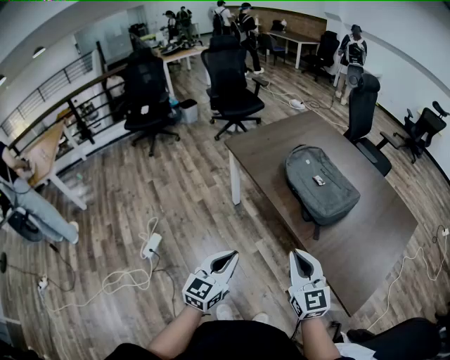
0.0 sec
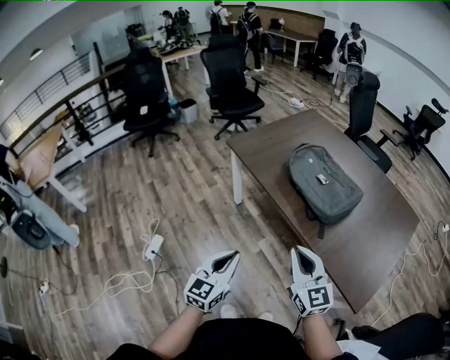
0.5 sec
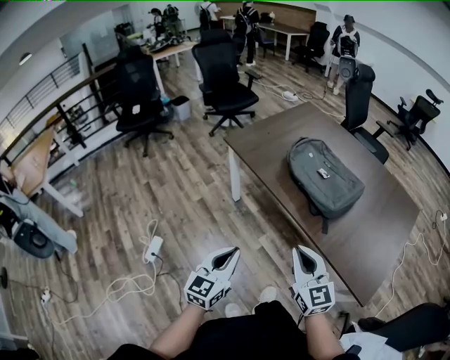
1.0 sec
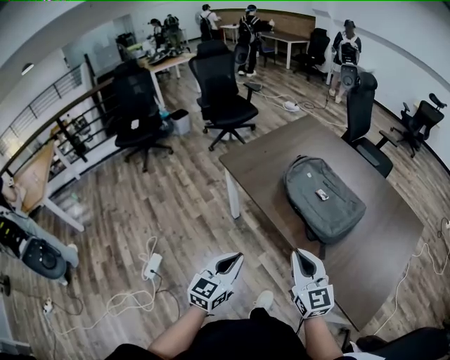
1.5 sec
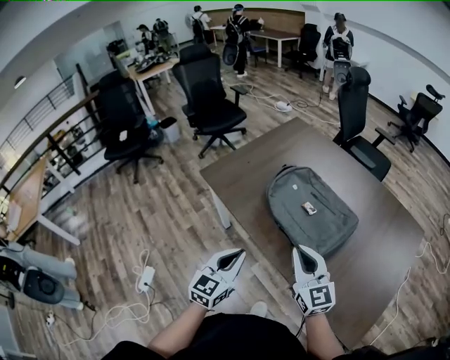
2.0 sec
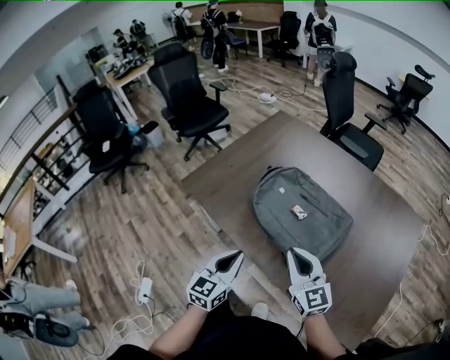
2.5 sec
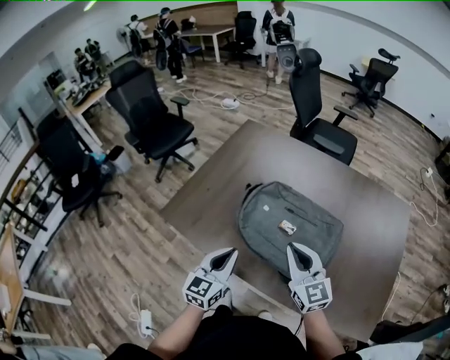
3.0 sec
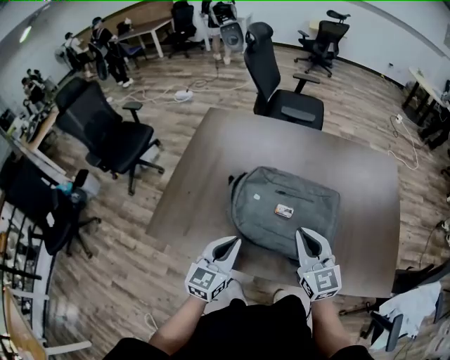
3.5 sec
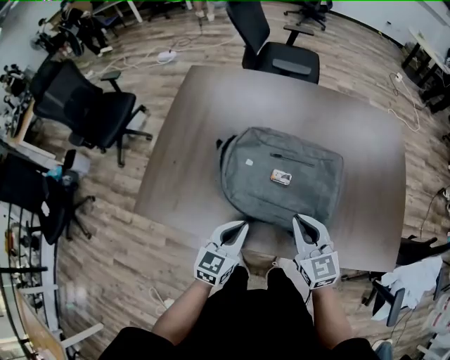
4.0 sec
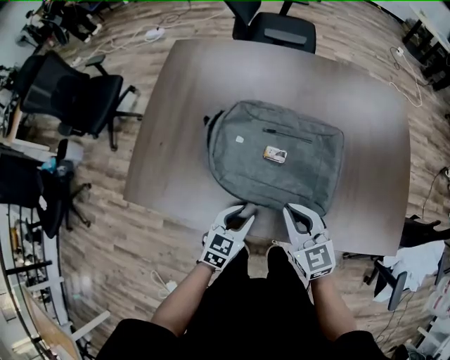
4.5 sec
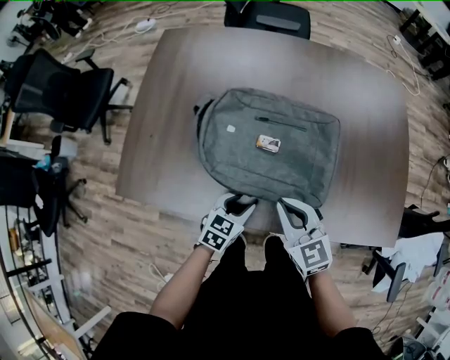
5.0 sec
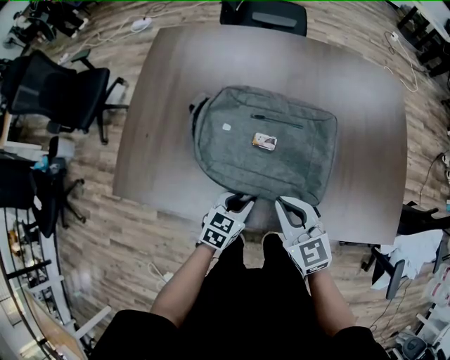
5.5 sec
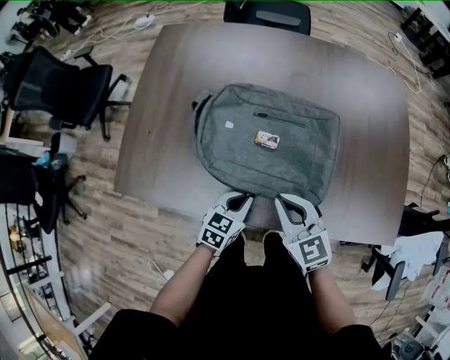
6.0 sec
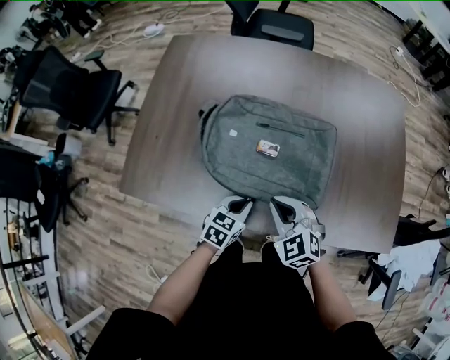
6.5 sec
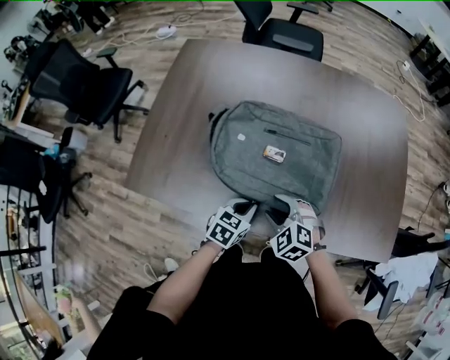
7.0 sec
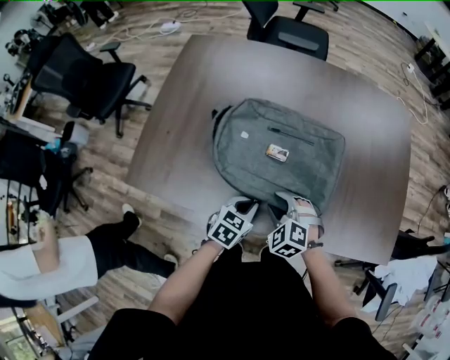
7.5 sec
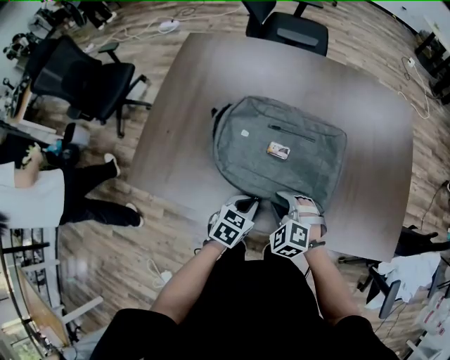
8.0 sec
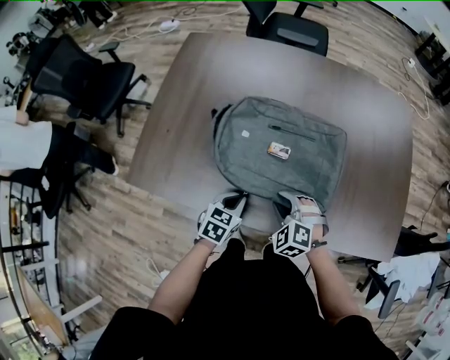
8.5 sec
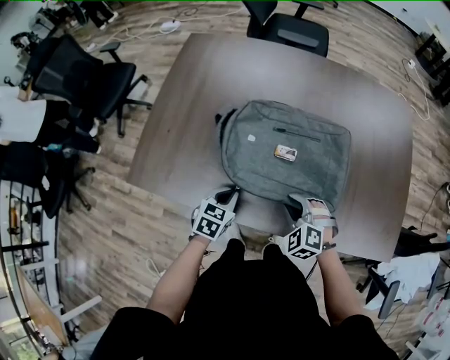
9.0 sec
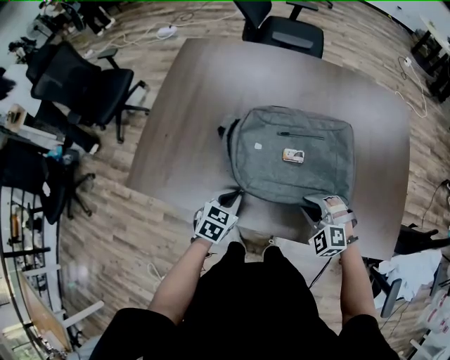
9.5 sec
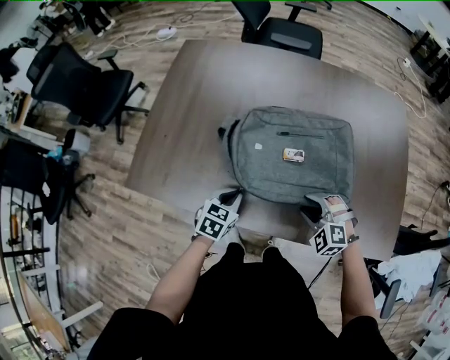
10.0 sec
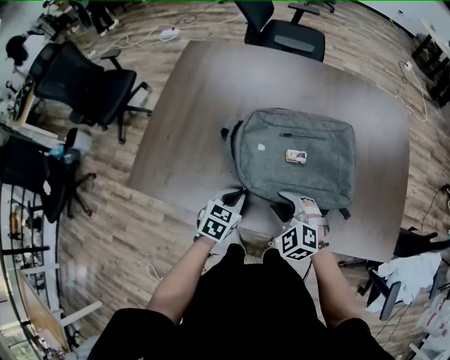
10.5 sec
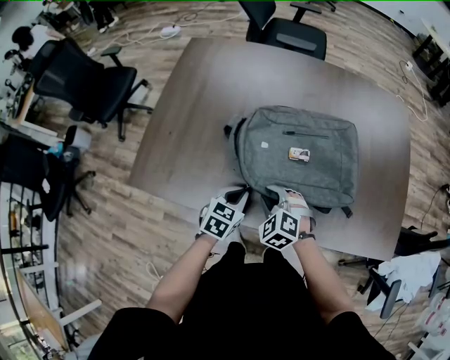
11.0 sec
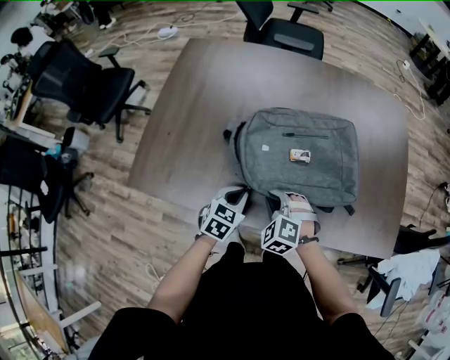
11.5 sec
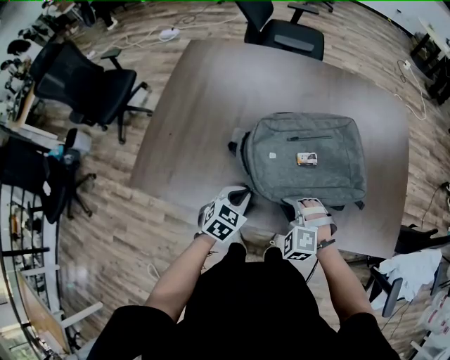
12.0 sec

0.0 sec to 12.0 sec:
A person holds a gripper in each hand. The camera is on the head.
0.0 sec to 2.0 sec: The two grippers go about 20 cm forward.
2.0 sec to 4.0 sec: The left gripper shifts by some 20 cm, and turns by approximately 40 degrees; the right gripper moves approximately 15 cm, and rotates approximately 40 degrees.
4.0 sec to 6.0 sec: The left gripper moves downward and to the right, approximately 10 cm, and opens, then closes once more.
6.0 sec to 8.0 sec: The right gripper moves downward, roughly 10 cm, twists roughly 40 degrees counterclockwise, seen from behind, and opens its fingers.
8.0 sec to 10.0 sec: The right gripper shifts approximately 10 cm to the right.
10.0 sec to 12.0 sec: The right gripper is displaced to the left by some 10 cm, and closes up.

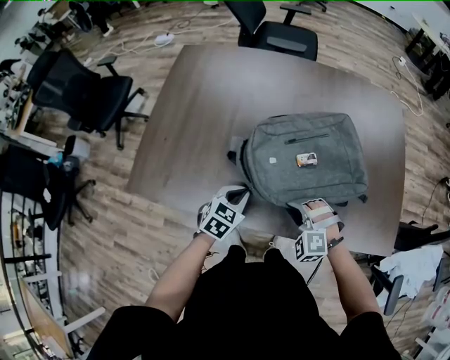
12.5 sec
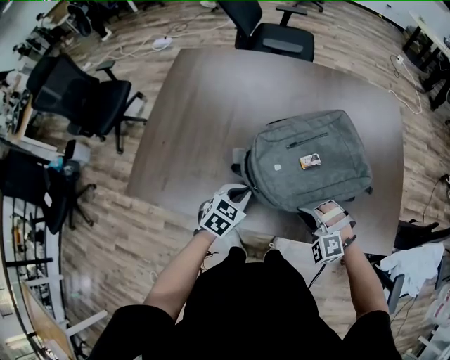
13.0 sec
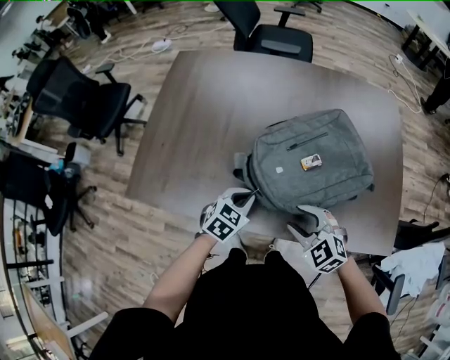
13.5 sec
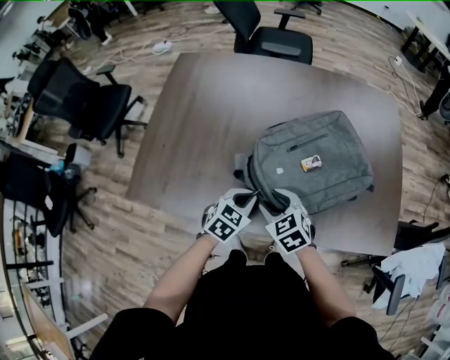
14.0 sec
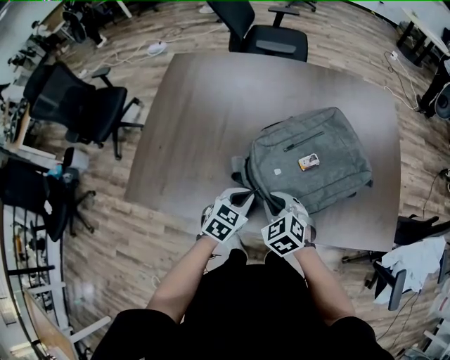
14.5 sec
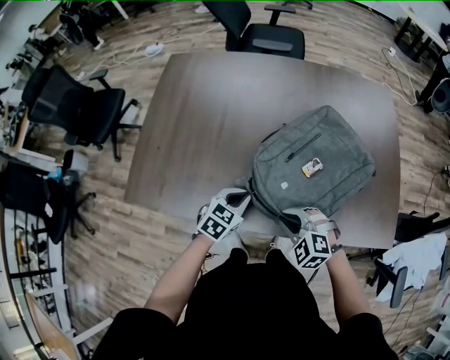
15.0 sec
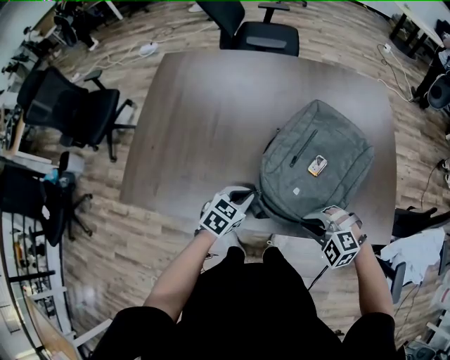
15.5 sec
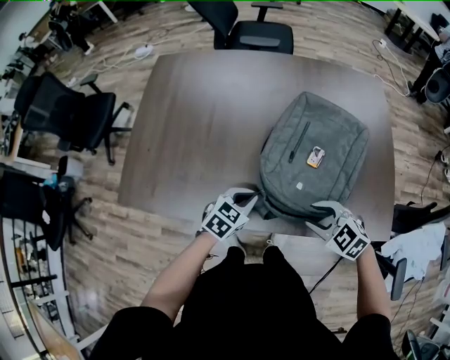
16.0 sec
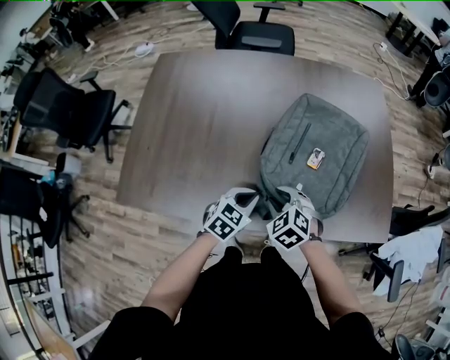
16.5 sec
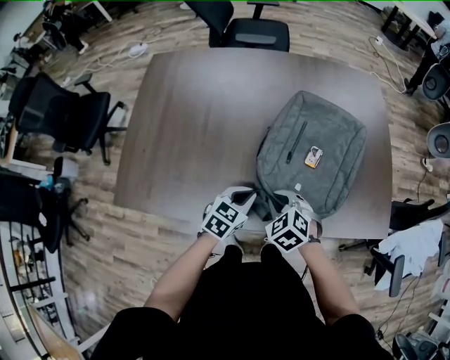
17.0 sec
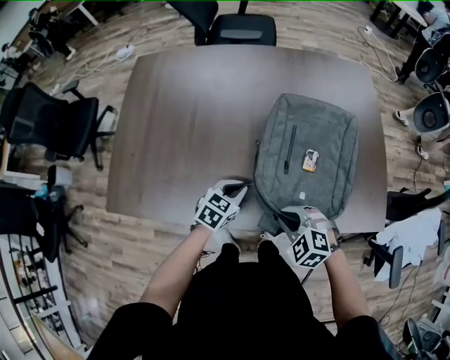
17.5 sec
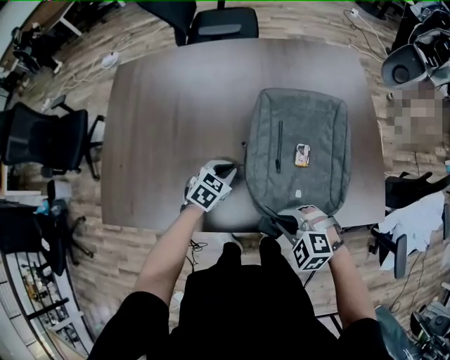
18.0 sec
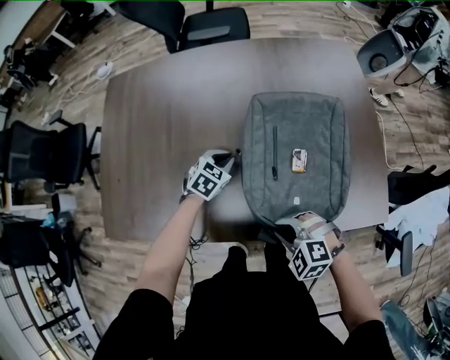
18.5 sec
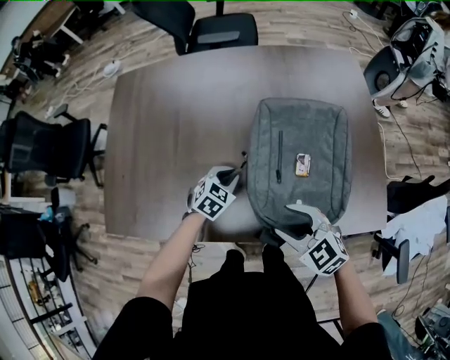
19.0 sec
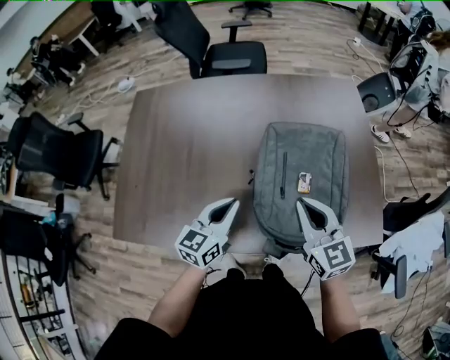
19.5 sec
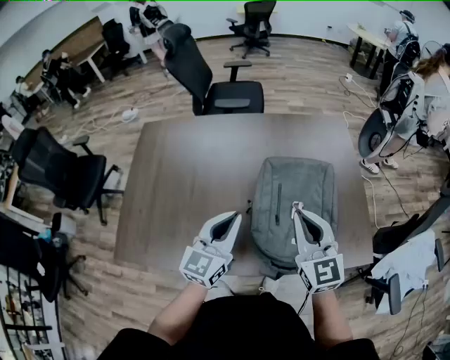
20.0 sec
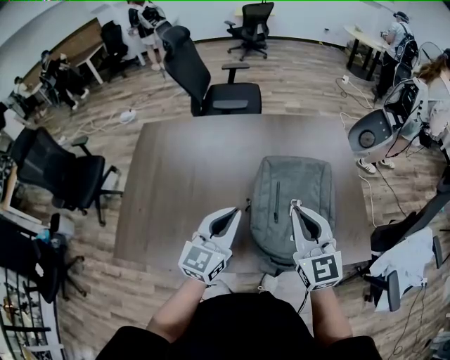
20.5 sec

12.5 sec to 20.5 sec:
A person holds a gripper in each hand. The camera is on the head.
12.5 sec to 14.5 sec: The right gripper shifts by approximately 5 cm, rotates around the line of its fingers by roughly 40 degrees, clockwise from behind, and opens, then closes again.
14.5 sec to 16.5 sec: The right gripper reaches approximately 15 cm to the right, then returns, and opens up. The left gripper is displaced to the right by approximately 5 cm.
16.5 sec to 18.5 sec: The right gripper moves backward and to the right, approximately 10 cm, changes its angle by approximately 20 degrees, and closes, while the left gripper shifts approximately 15 cm forward.
18.5 sec to 20.5 sec: The right gripper shifts about 30 cm upward and forward, tilts its fingers roughly 50 degrees upward, and opens, then closes again. The left gripper shifts some 30 cm upward and backward, and angles its fingers upward, by approximately 50 degrees.

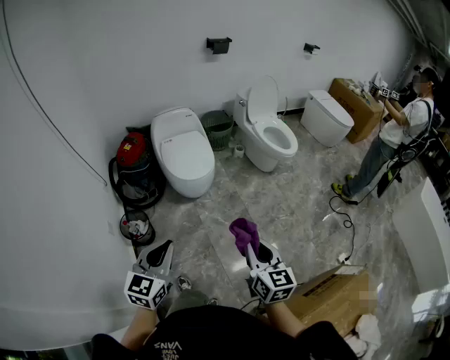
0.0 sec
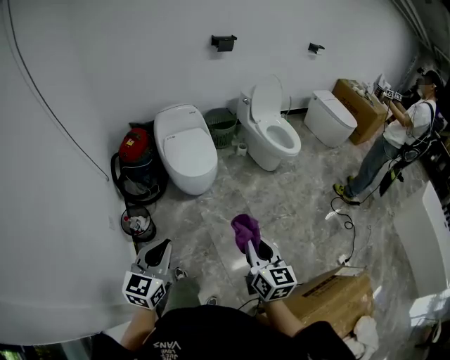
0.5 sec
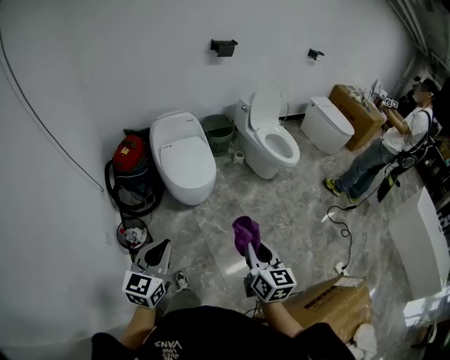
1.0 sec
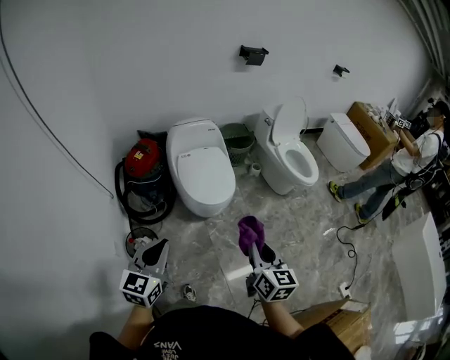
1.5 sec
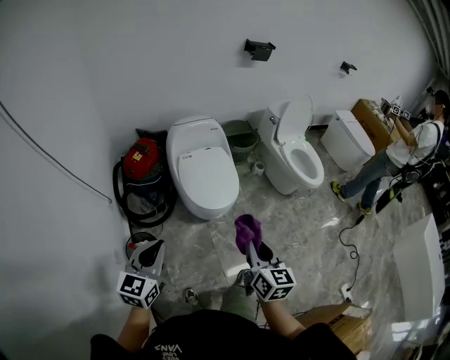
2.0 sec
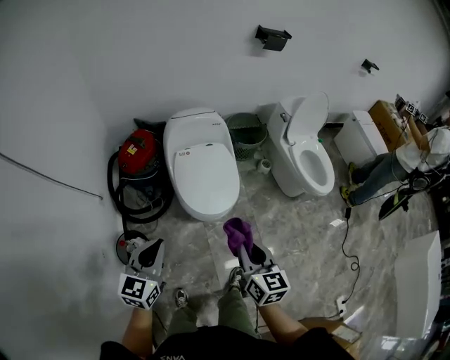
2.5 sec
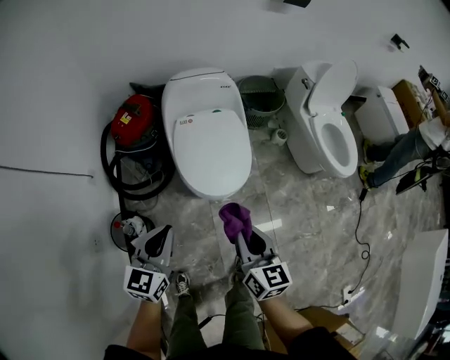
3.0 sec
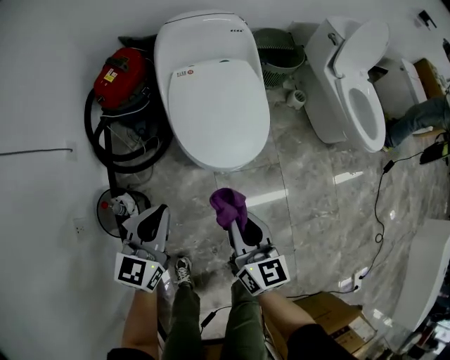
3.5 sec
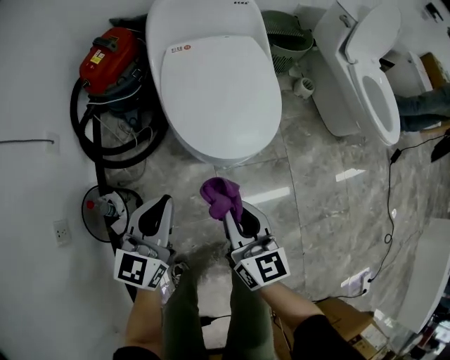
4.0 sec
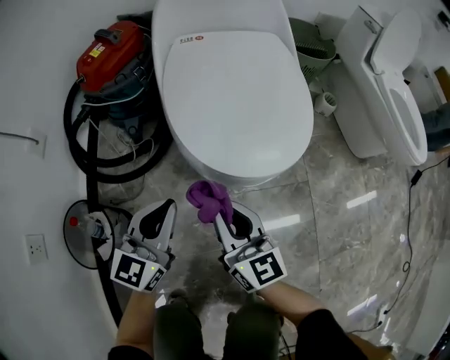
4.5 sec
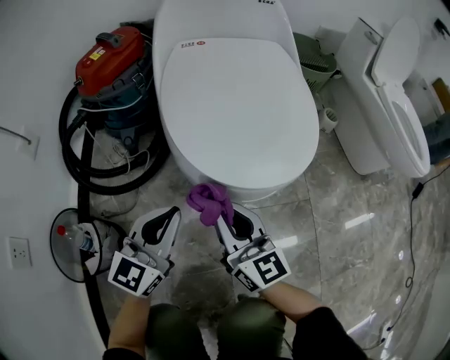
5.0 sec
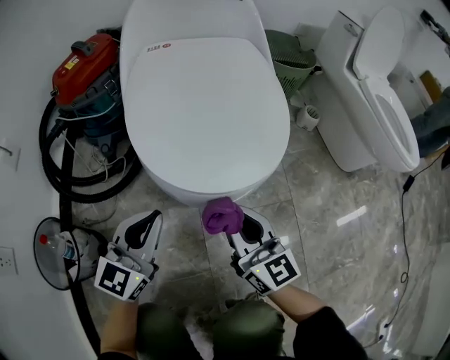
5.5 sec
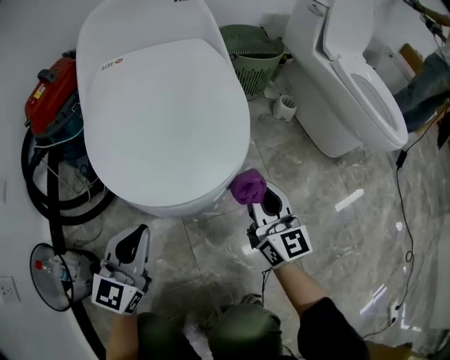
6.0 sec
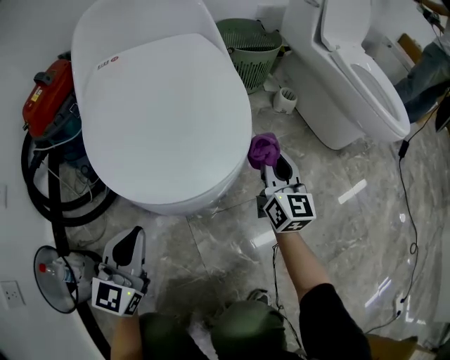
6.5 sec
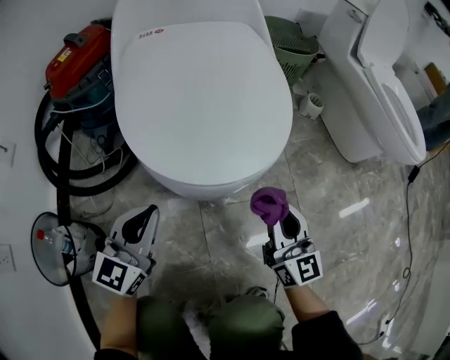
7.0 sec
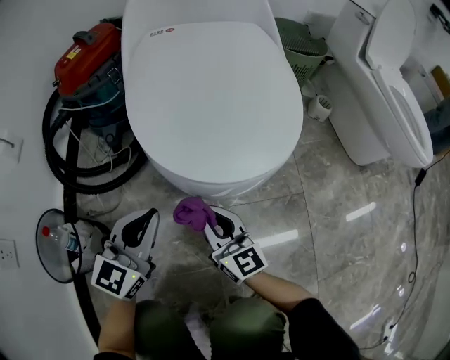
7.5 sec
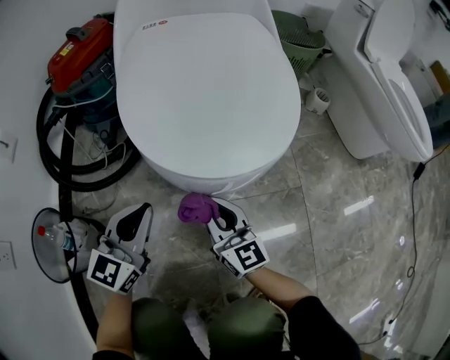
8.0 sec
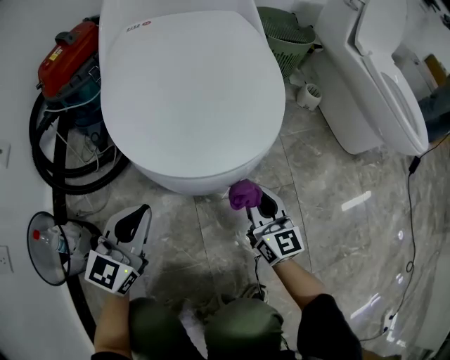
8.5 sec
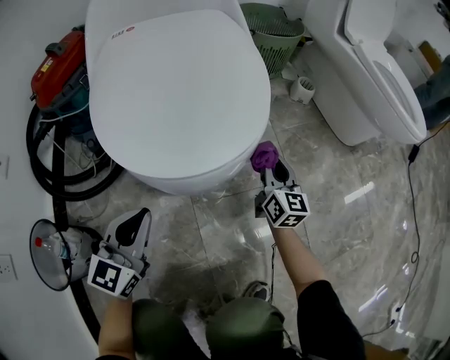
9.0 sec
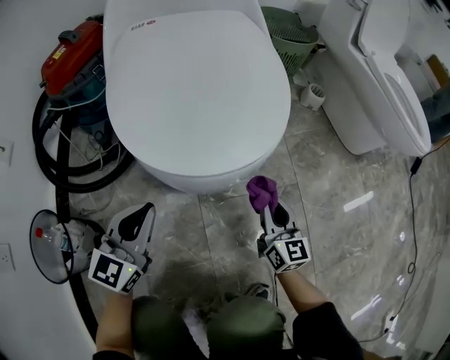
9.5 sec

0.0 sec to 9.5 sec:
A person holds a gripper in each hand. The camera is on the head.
0.0 sec to 2.0 sec: The two grippers go some 30 cm forward and to the left.
2.0 sec to 4.0 sec: Both grippers move downward and forward, some 40 cm.
4.0 sec to 5.5 sec: The right gripper is displaced downward and forward by roughly 20 cm. Meanwhile the left gripper shifts some 20 cm downward.
5.5 sec to 7.5 sec: The right gripper is displaced downward by approximately 10 cm, and goes to the right and returns, about 20 cm each way.
7.5 sec to 9.5 sec: The right gripper heads to the right, covering roughly 20 cm, and rotates some 20 degrees.
